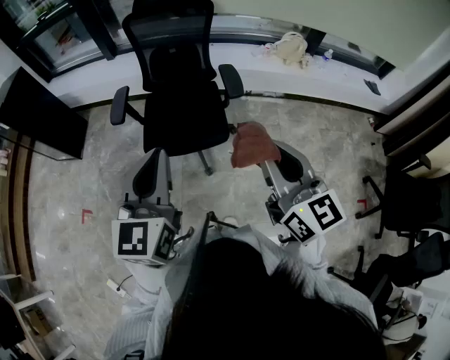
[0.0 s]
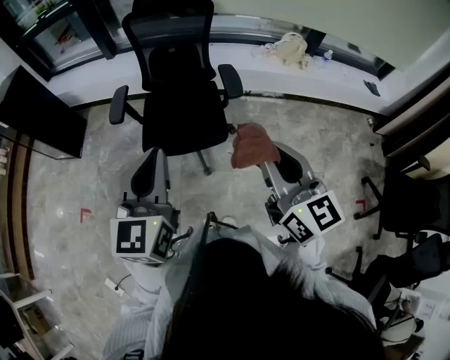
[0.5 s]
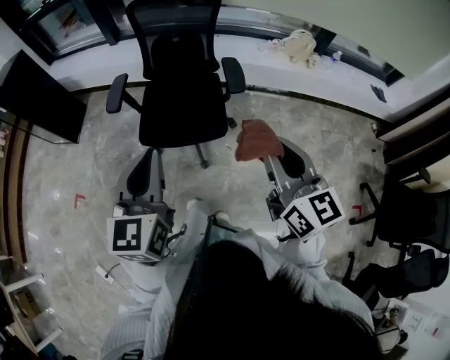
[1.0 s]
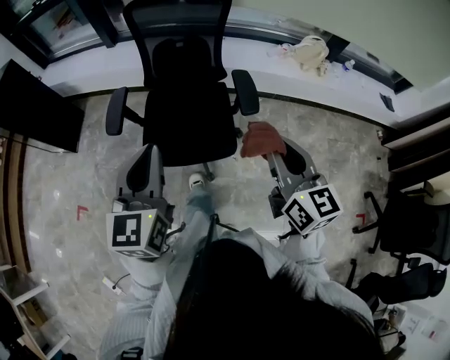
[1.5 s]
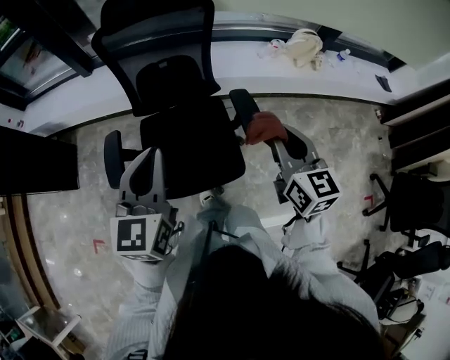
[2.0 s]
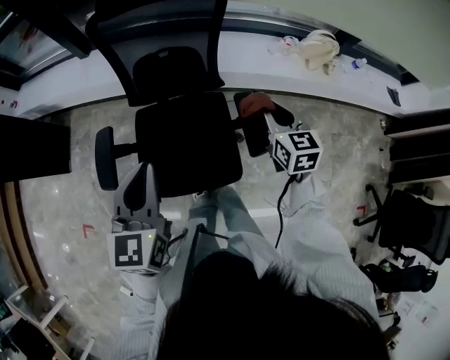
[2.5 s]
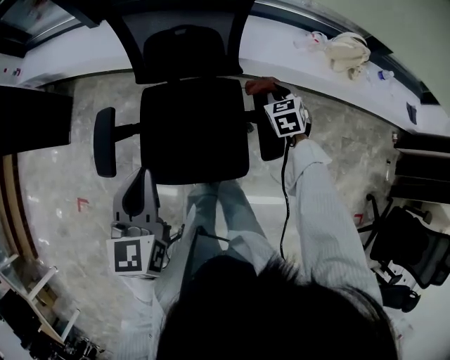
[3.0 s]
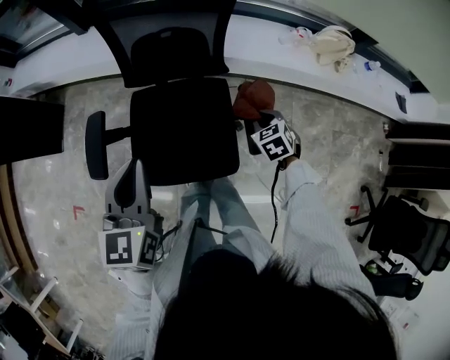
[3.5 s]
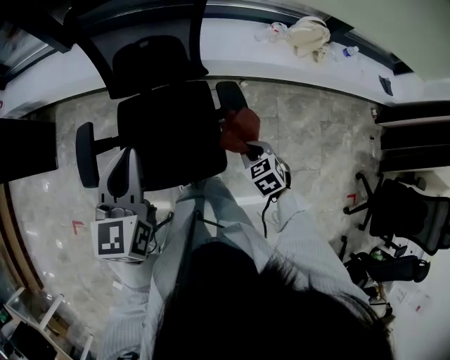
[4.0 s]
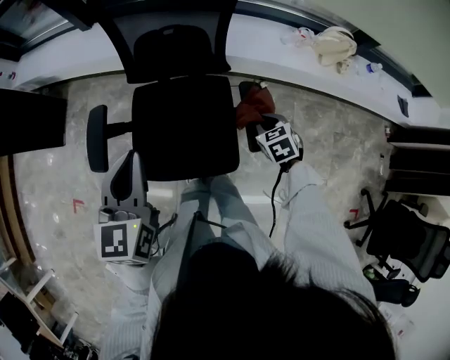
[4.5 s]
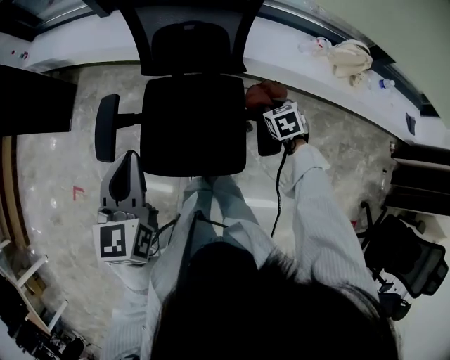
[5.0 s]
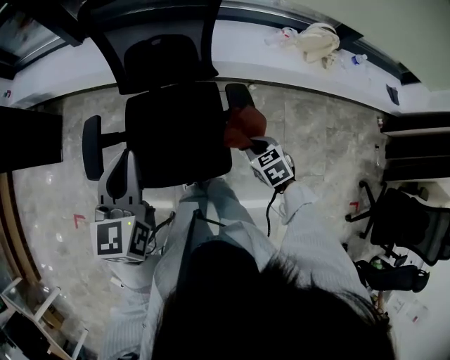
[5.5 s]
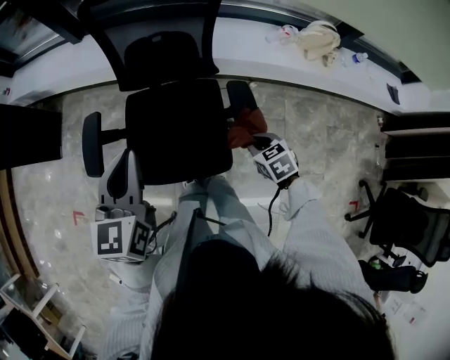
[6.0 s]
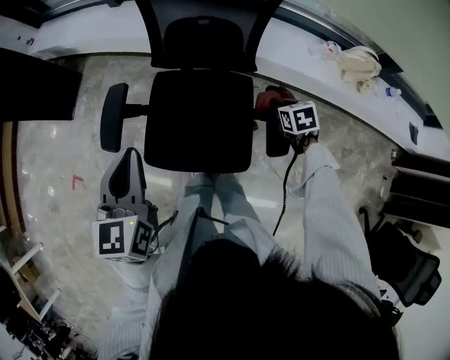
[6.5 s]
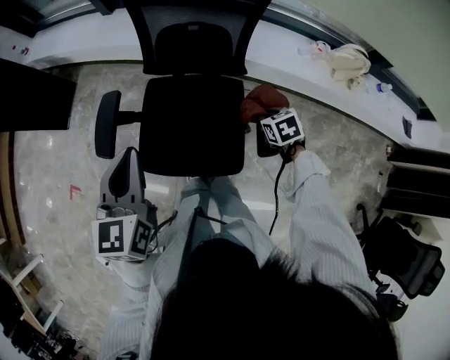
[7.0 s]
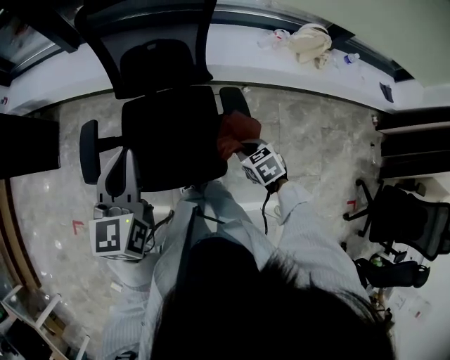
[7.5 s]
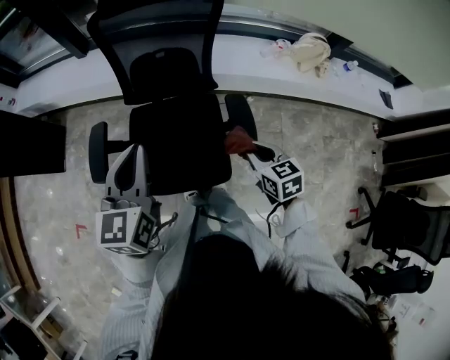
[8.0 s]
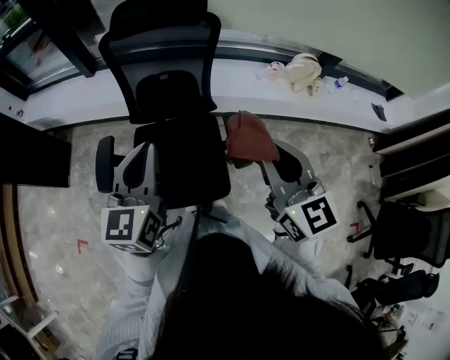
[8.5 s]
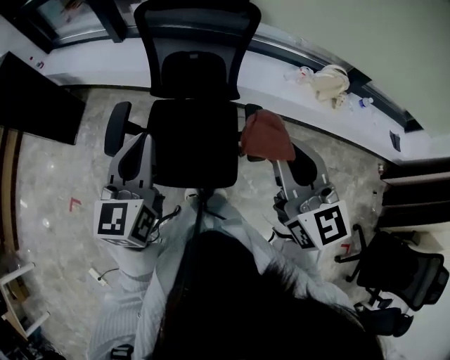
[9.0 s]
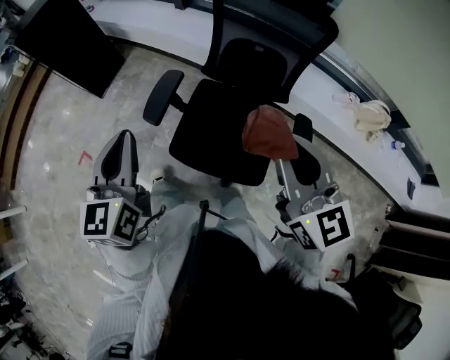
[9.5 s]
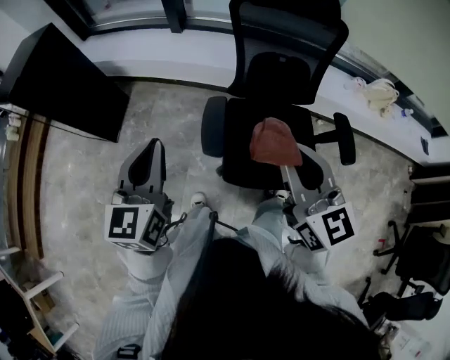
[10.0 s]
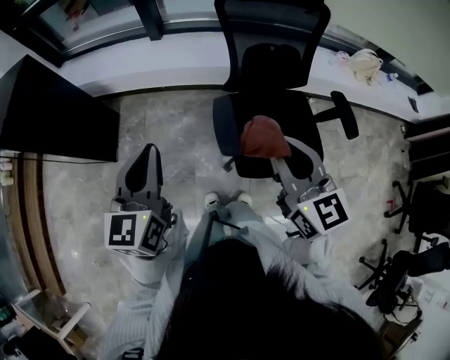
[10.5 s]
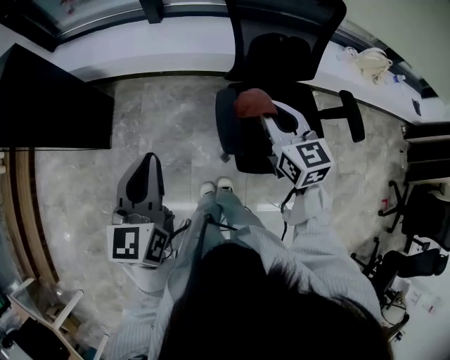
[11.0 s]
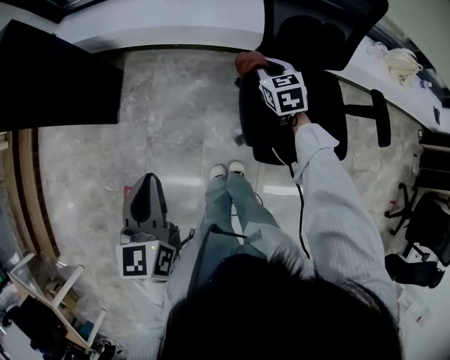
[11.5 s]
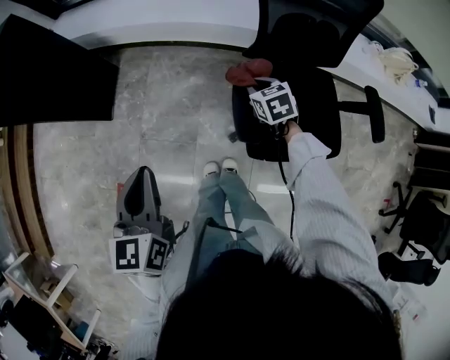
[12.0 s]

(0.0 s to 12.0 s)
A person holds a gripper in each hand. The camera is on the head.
0.0 s - 2.0 s: The grippers both shift forward by some 40 cm.
2.0 s - 4.0 s: The right gripper is displaced downward by roughly 30 cm, and tilts its fingers approximately 50 degrees downward. Meanwhile the left gripper is displaced downward and forward by some 10 cm.
4.0 s - 6.0 s: The right gripper reaches approximately 15 cm forward, then returns, while the left gripper moves about 10 cm to the left and comes back.
6.0 s - 8.0 s: The right gripper heads upward, covering approximately 10 cm, moves approximately 15 cm forward and comes back, and rotates approximately 20 degrees; the left gripper travels to the left and back again, approximately 10 cm each way.
8.0 s - 10.0 s: The two grippers travel together, some 40 cm. The right gripper tips its fingers upward by approximately 30 degrees.
10.0 s - 12.0 s: The right gripper goes some 40 cm downward and forward, and tilts its fingers approximately 50 degrees downward, while the left gripper is displaced to the left and downward by roughly 20 cm.

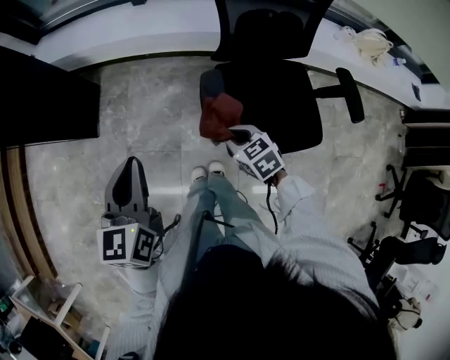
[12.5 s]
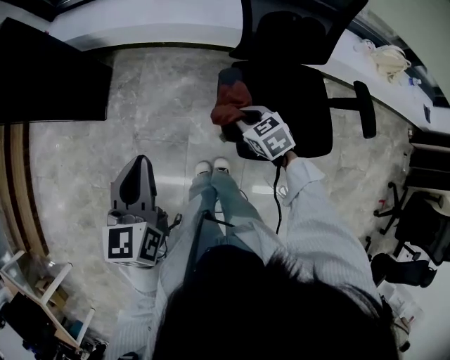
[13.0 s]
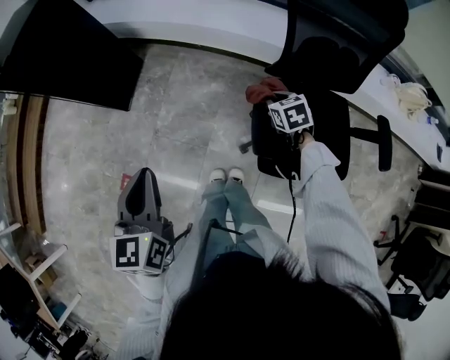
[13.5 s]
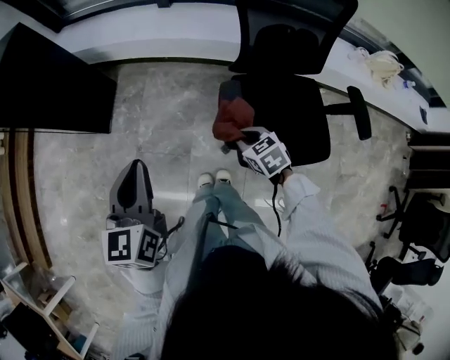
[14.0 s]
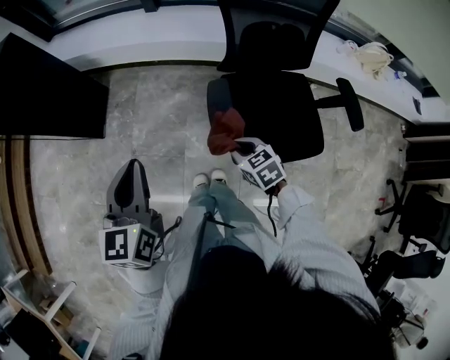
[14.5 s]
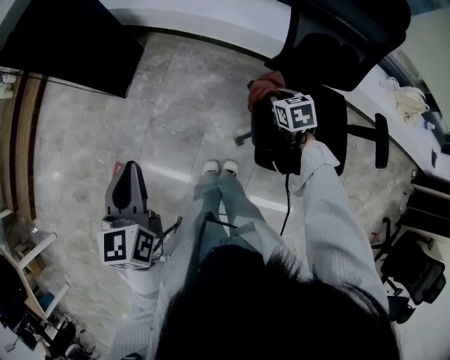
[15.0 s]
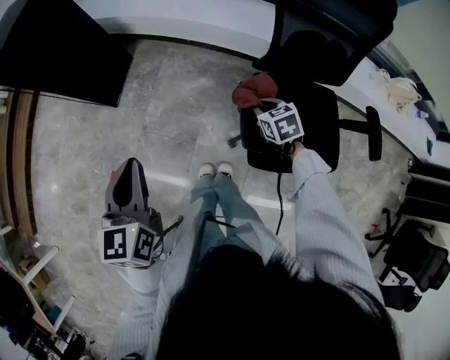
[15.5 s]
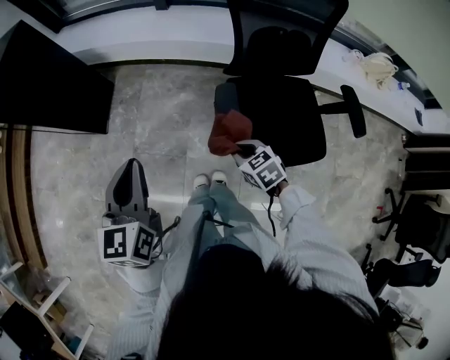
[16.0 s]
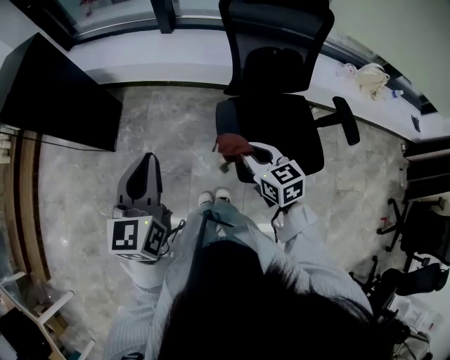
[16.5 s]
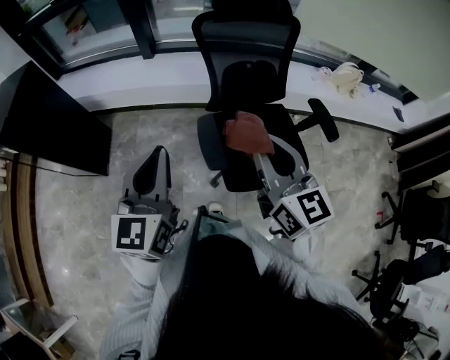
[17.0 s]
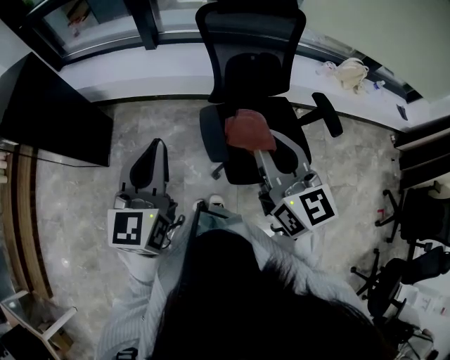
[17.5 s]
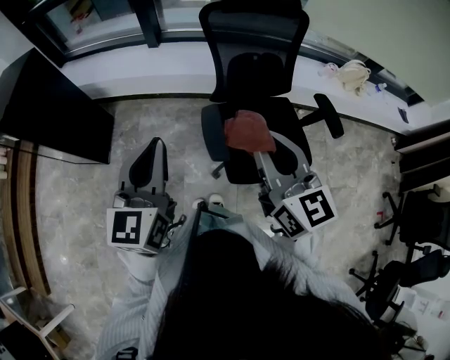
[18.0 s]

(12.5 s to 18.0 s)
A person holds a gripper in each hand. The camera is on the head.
12.5 s - 14.5 s: The left gripper reaches approximately 10 cm to the left, then returns; the right gripper goes forward and returns, roughly 15 cm each way.
14.5 s - 16.0 s: The right gripper reaches roughly 15 cm forward, then returns. Meanwhile the left gripper travels to the left and back again, about 10 cm each way.
16.0 s - 18.0 s: The left gripper is displaced upward by some 10 cm; the right gripper goes about 35 cm upward, and tips its fingers upward by some 50 degrees.

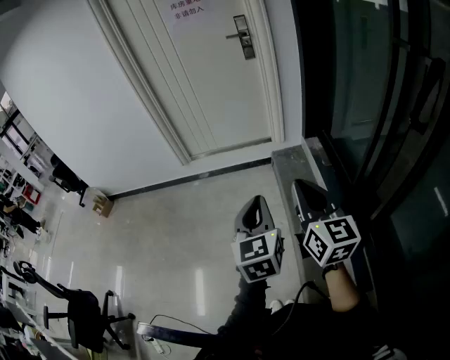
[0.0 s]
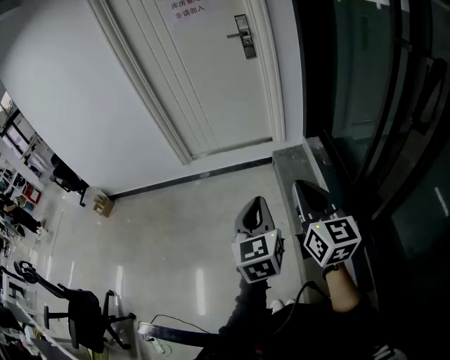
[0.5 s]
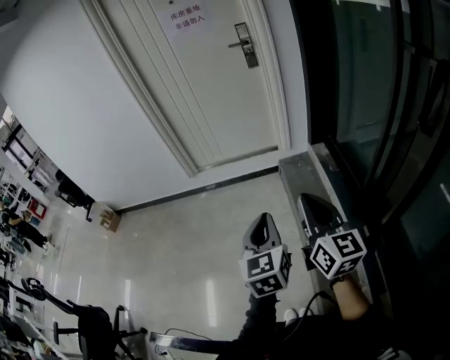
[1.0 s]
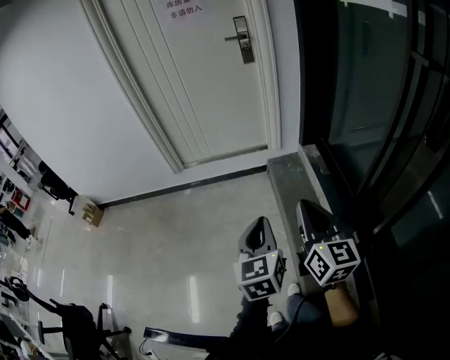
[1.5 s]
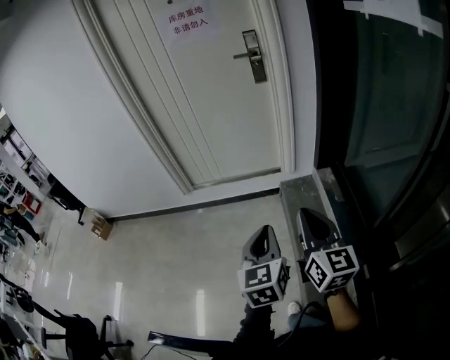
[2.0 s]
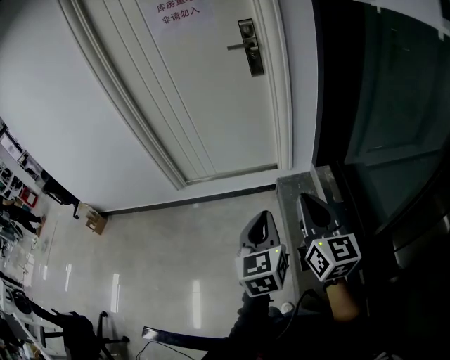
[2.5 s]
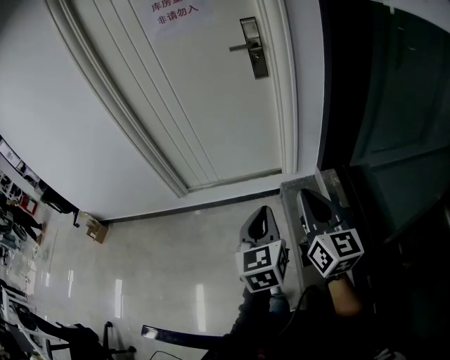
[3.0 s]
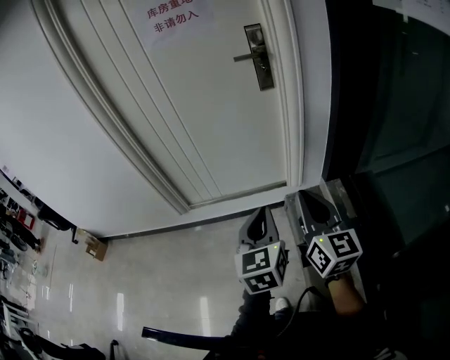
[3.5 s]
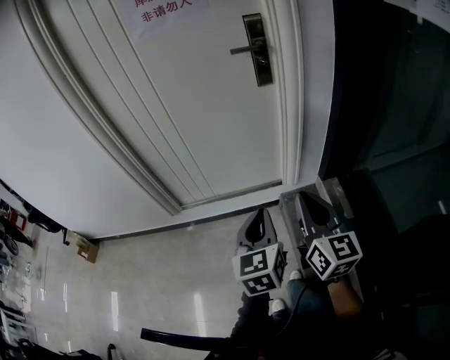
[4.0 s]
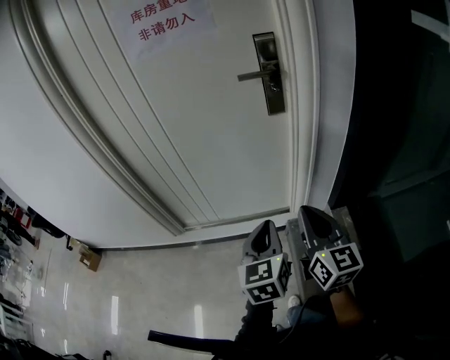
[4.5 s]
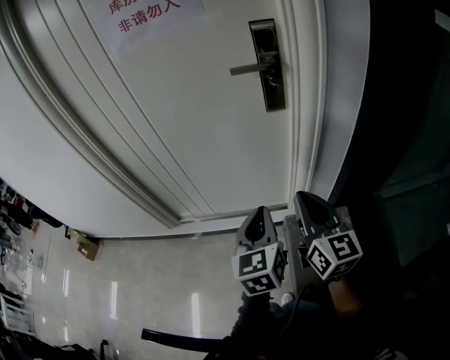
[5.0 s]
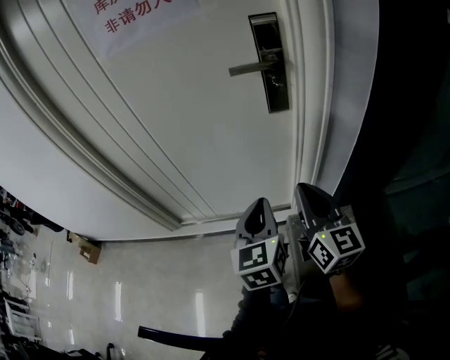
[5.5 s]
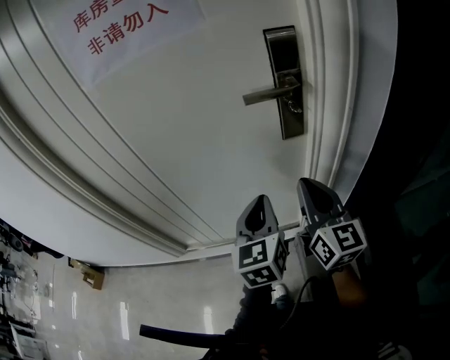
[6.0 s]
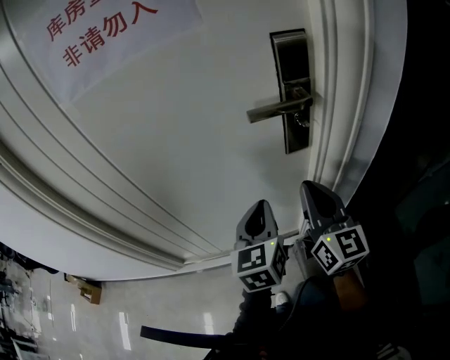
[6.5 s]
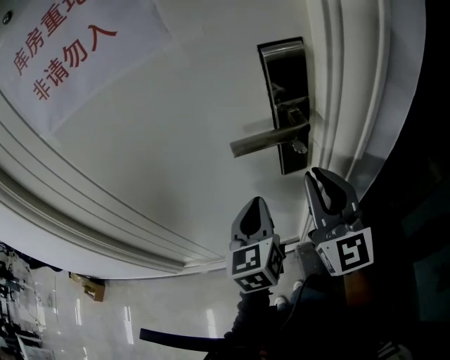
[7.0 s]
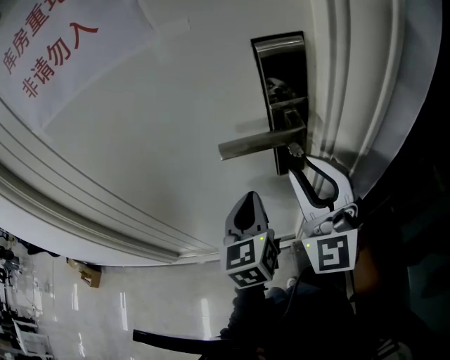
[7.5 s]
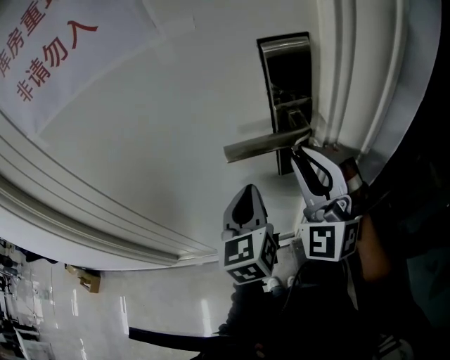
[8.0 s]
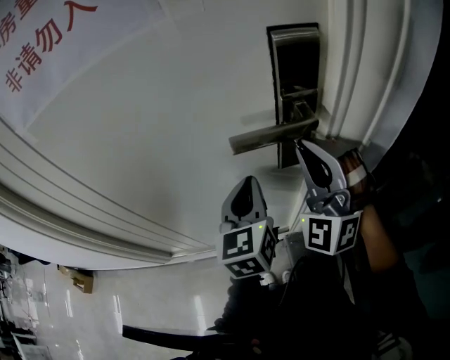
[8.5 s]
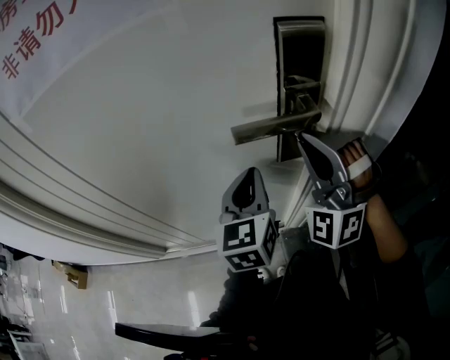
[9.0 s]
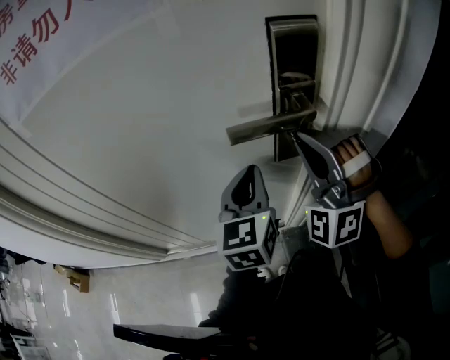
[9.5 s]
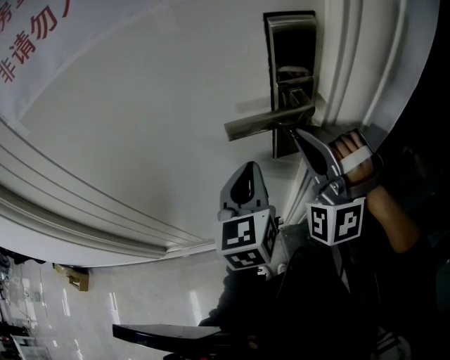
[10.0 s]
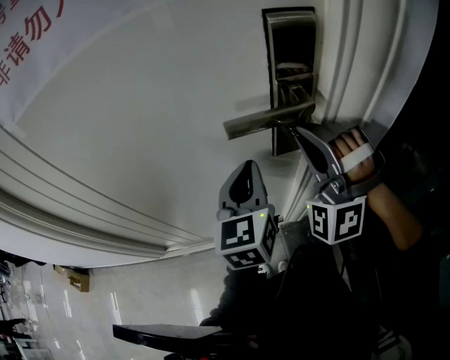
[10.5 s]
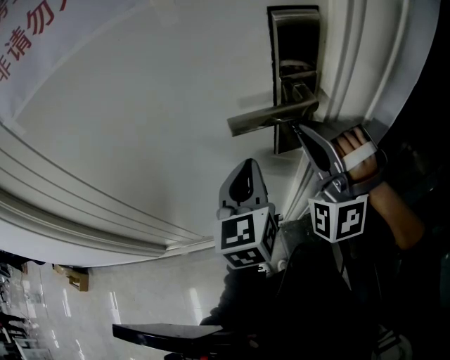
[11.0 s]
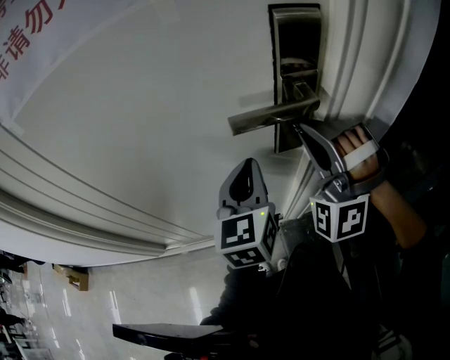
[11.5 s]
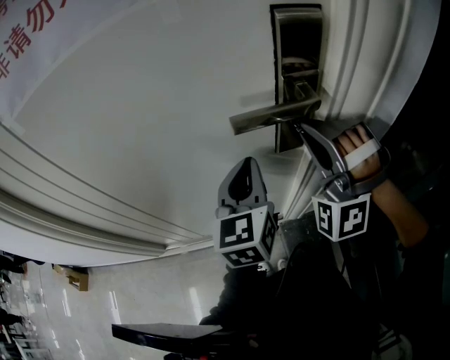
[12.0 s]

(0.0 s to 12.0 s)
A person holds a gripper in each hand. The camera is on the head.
0.0 s - 2.0 s: The two grippers go some 20 cm forward.
2.0 s - 4.0 s: The two grippers go some 30 cm forward.
4.0 s - 6.0 s: Both grippers travel together forward, about 35 cm.
6.0 s - 8.0 s: The left gripper travels forward by some 15 cm. The right gripper travels forward and upward by about 15 cm, and rotates around the line of its fingers by some 70 degrees, counterclockwise from behind.
8.0 s - 10.0 s: The right gripper changes its angle by some 30 degrees.
10.0 s - 12.0 s: The grippers stay close to where they were, moving slightly.
